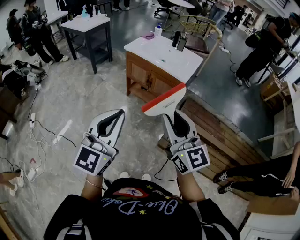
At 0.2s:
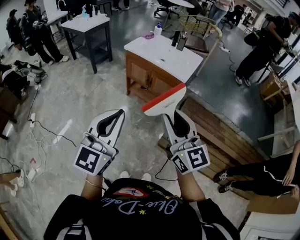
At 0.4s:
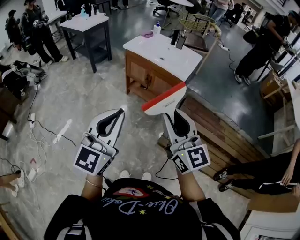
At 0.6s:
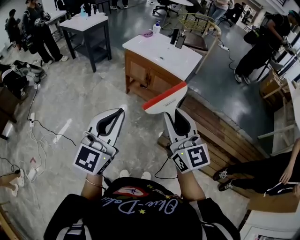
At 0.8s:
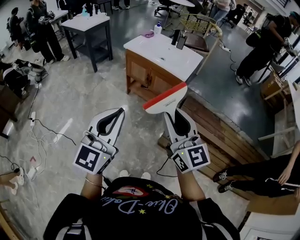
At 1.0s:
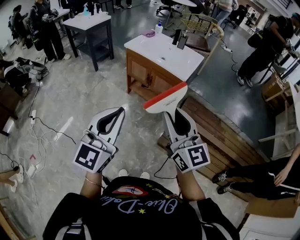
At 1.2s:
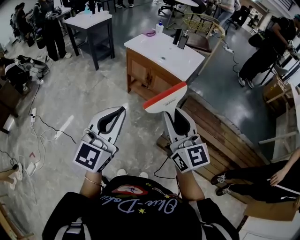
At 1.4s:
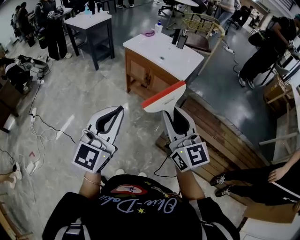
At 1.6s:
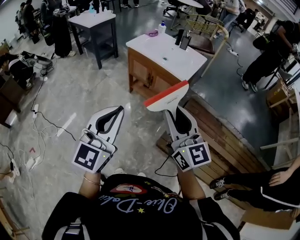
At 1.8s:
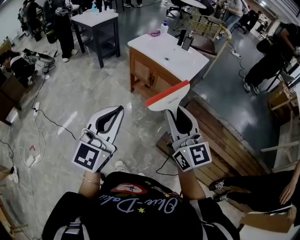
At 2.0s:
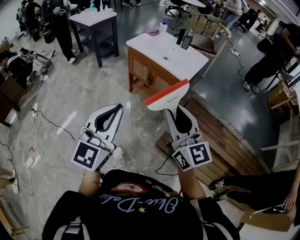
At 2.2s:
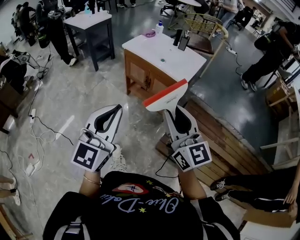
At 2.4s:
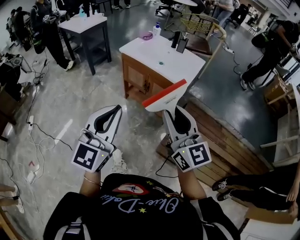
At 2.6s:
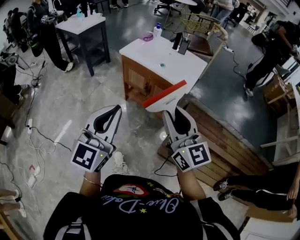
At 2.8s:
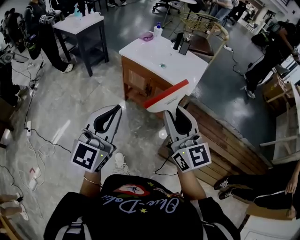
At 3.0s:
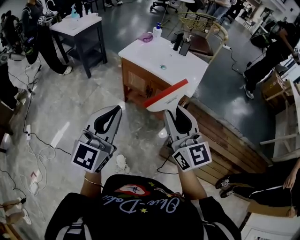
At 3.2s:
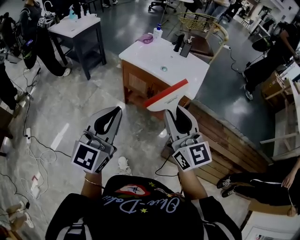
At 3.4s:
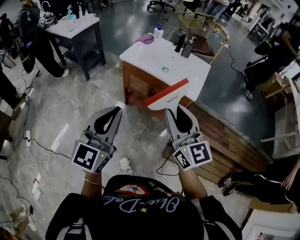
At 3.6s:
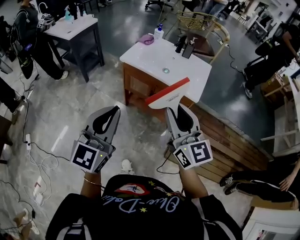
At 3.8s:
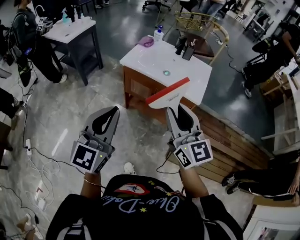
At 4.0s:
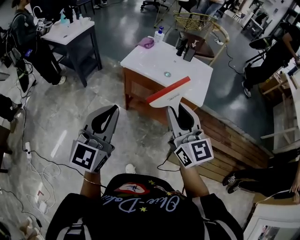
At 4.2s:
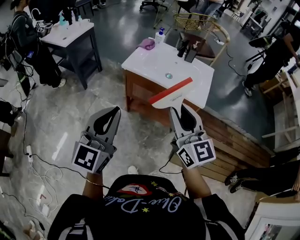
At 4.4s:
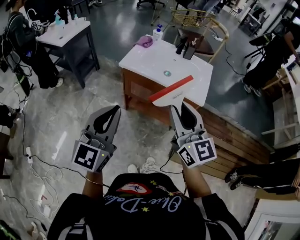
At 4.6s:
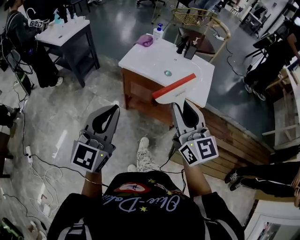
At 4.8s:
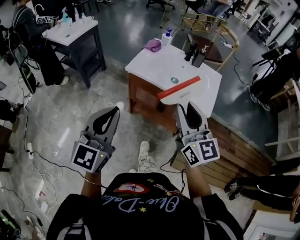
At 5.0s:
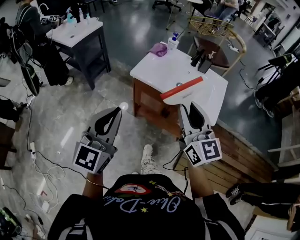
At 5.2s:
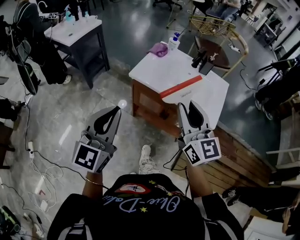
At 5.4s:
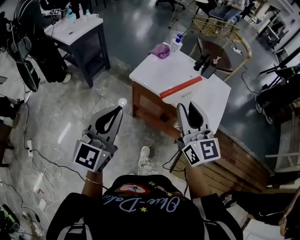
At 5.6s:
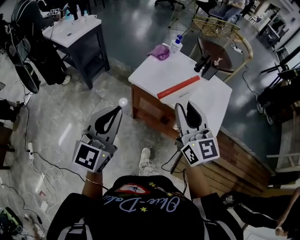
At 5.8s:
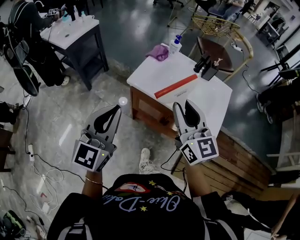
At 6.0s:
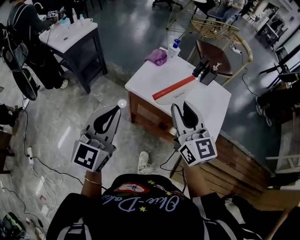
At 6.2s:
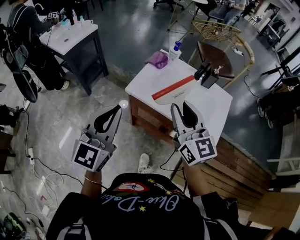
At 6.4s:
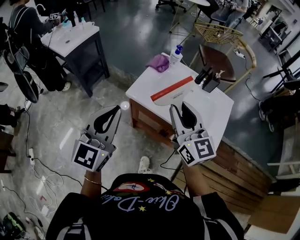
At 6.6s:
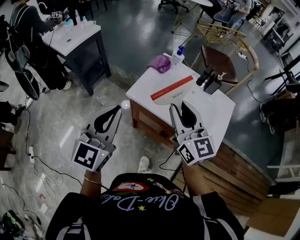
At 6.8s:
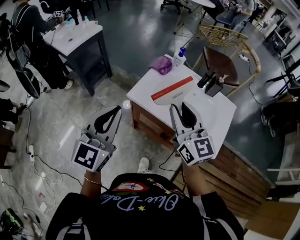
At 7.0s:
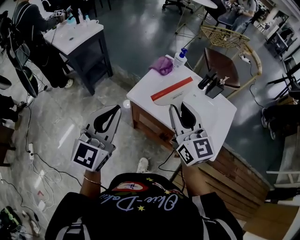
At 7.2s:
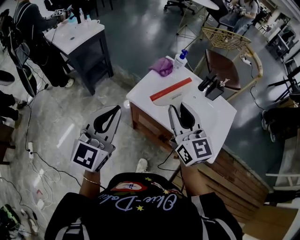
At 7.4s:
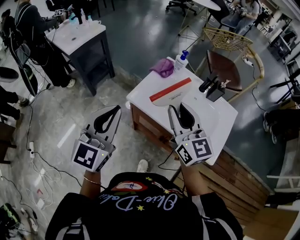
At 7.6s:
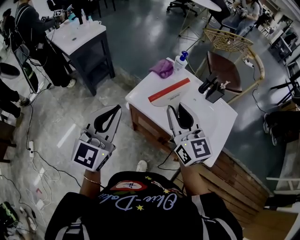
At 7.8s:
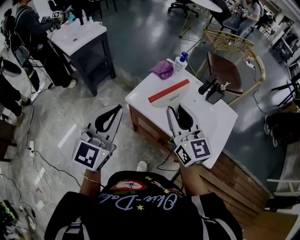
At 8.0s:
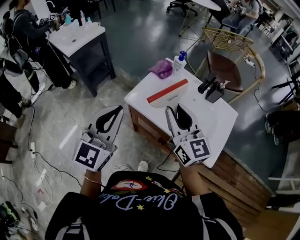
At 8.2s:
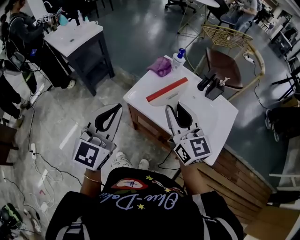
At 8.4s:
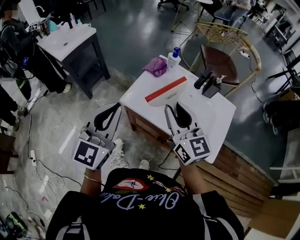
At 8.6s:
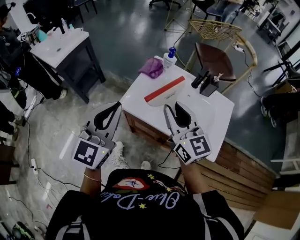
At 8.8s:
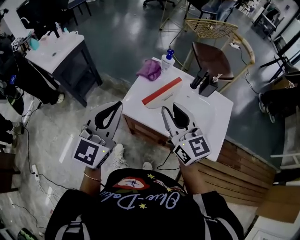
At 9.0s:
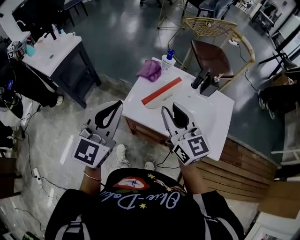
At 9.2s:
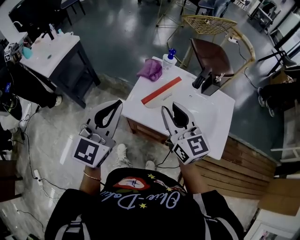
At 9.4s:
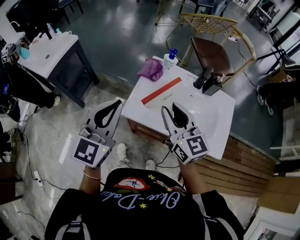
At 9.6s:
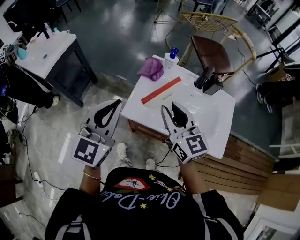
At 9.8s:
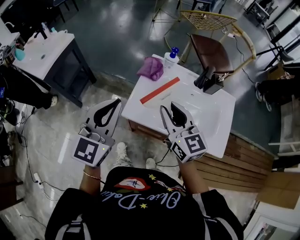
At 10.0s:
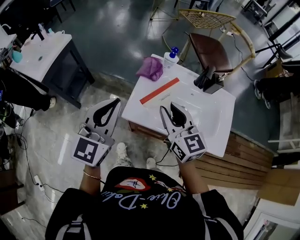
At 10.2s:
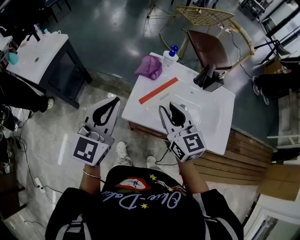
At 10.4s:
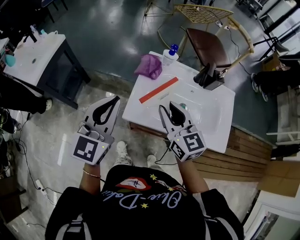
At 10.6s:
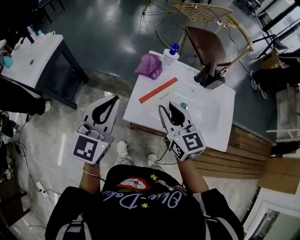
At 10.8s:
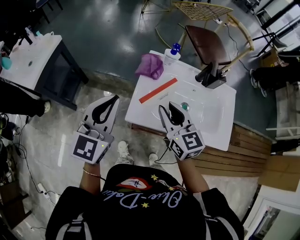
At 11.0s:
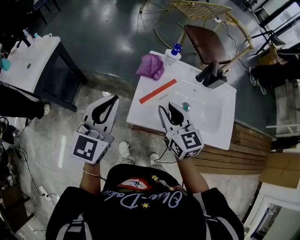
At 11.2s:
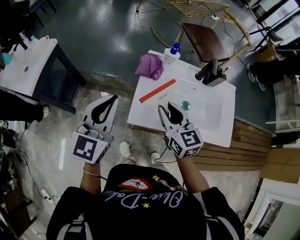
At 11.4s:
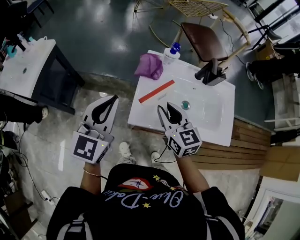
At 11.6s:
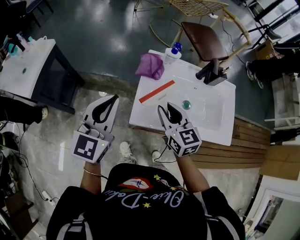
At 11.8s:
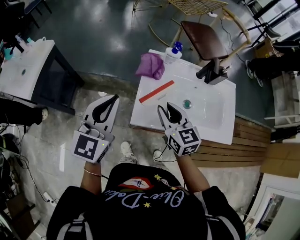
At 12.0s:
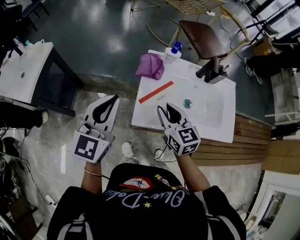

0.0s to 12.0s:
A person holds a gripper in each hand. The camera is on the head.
0.0s to 1.6s: The right gripper heads to the right, covering some 5 cm.
1.6s to 3.0s: The grippers both shift forward and to the left by some 15 cm.
3.0s to 4.4s: The grippers both shift forward and to the left by roughly 15 cm.
4.4s to 6.0s: Both grippers travel together forward, about 20 cm.
6.0s to 7.6s: The two grippers go about 10 cm forward.
7.6s to 9.0s: The left gripper is displaced forward by about 10 cm.
9.0s to 10.4s: The right gripper heads downward, covering some 5 cm; the left gripper shifts some 10 cm forward and to the left.
10.4s to 12.0s: The left gripper moves about 5 cm. The right gripper heads downward, covering some 5 cm.

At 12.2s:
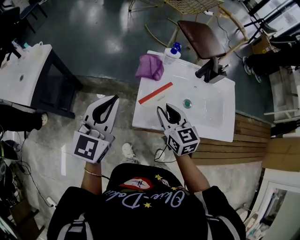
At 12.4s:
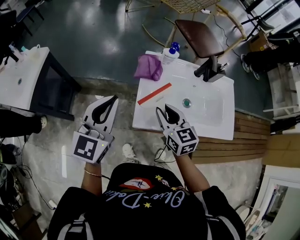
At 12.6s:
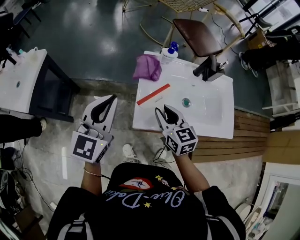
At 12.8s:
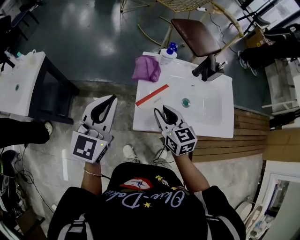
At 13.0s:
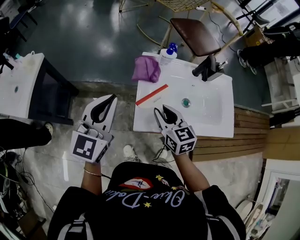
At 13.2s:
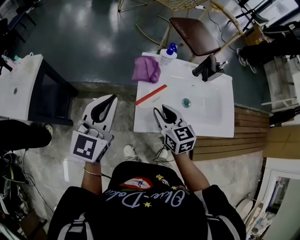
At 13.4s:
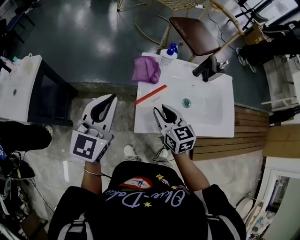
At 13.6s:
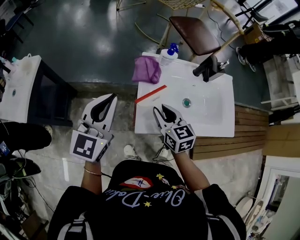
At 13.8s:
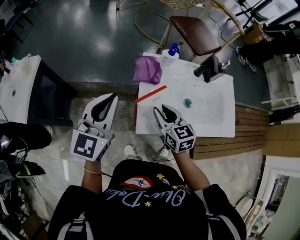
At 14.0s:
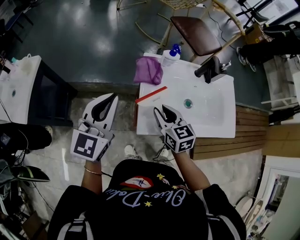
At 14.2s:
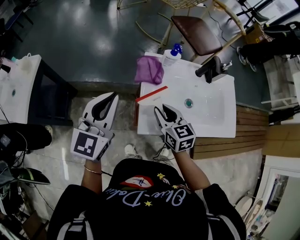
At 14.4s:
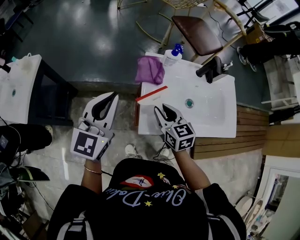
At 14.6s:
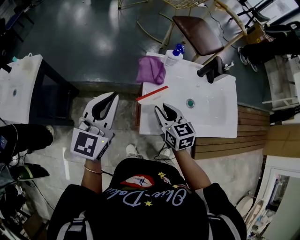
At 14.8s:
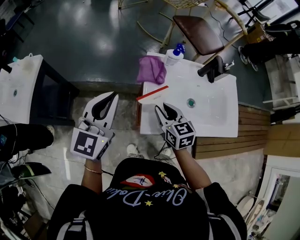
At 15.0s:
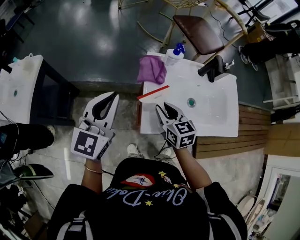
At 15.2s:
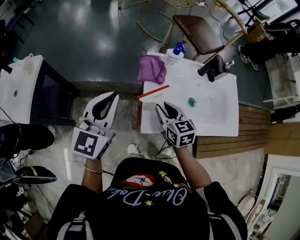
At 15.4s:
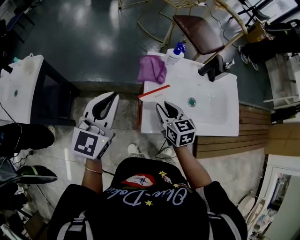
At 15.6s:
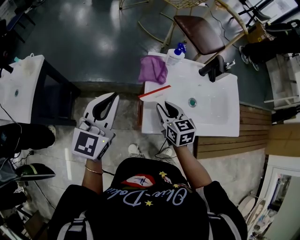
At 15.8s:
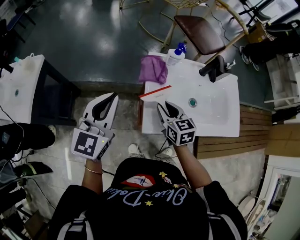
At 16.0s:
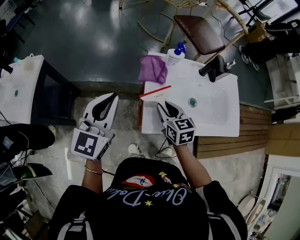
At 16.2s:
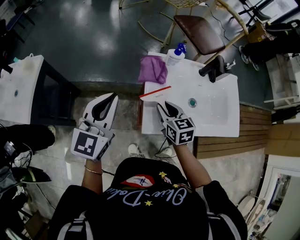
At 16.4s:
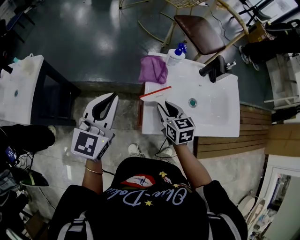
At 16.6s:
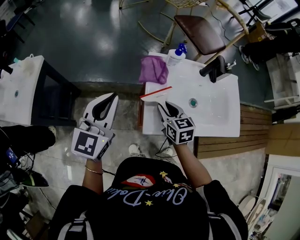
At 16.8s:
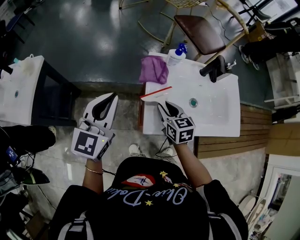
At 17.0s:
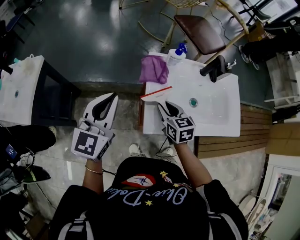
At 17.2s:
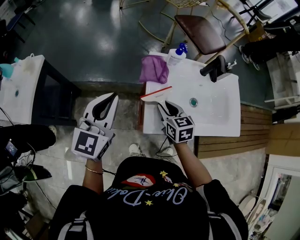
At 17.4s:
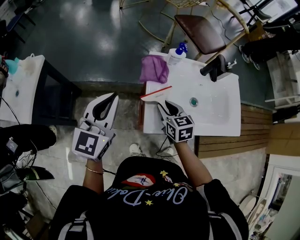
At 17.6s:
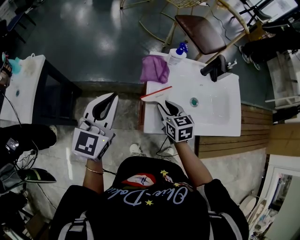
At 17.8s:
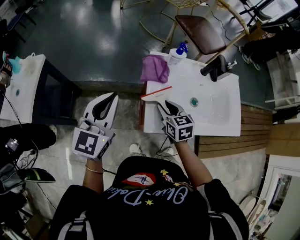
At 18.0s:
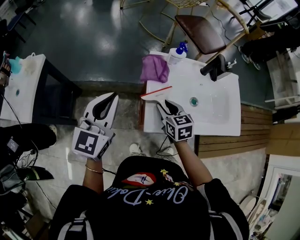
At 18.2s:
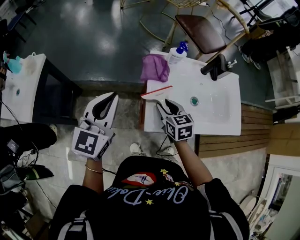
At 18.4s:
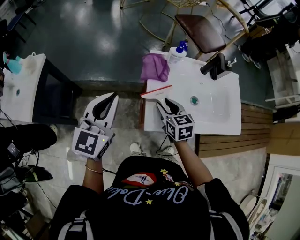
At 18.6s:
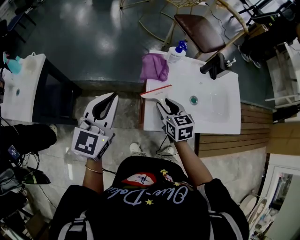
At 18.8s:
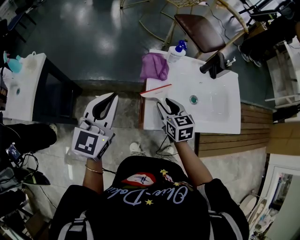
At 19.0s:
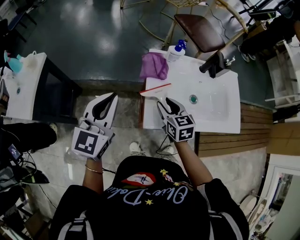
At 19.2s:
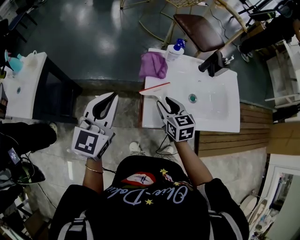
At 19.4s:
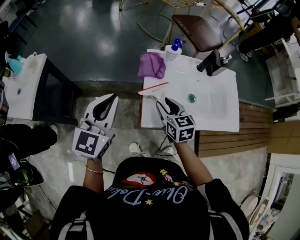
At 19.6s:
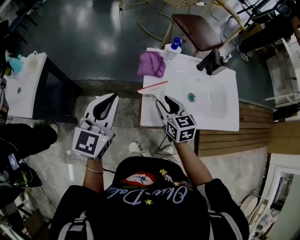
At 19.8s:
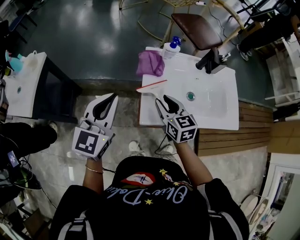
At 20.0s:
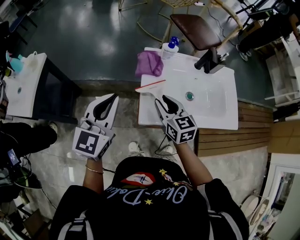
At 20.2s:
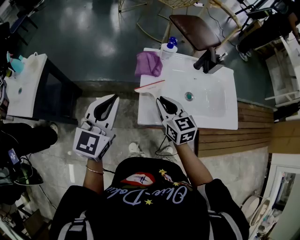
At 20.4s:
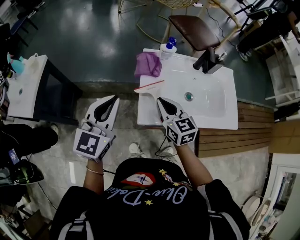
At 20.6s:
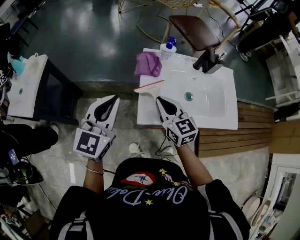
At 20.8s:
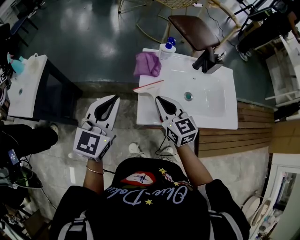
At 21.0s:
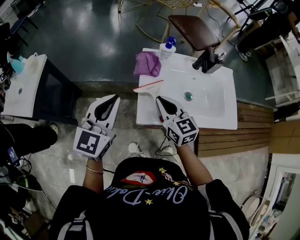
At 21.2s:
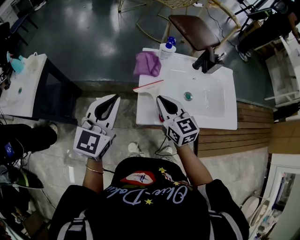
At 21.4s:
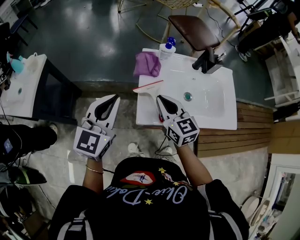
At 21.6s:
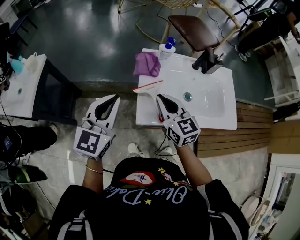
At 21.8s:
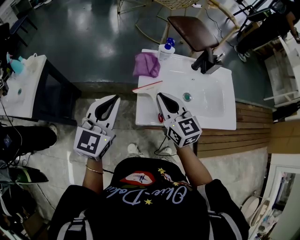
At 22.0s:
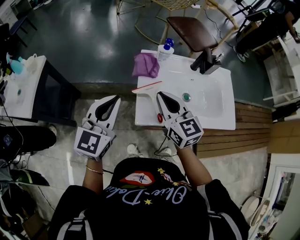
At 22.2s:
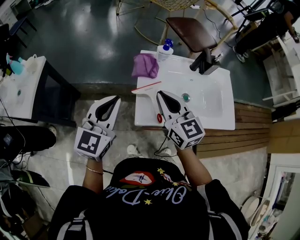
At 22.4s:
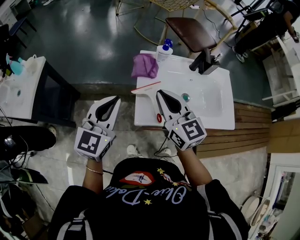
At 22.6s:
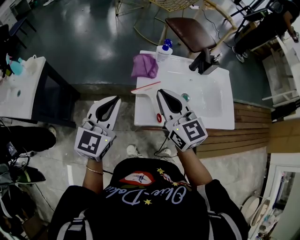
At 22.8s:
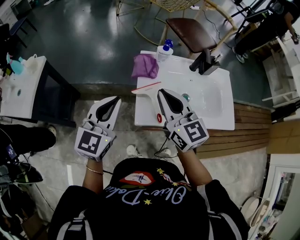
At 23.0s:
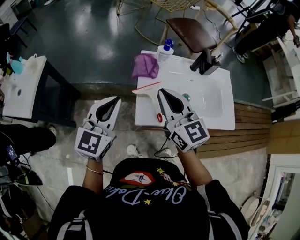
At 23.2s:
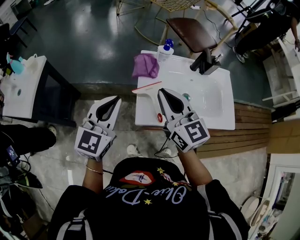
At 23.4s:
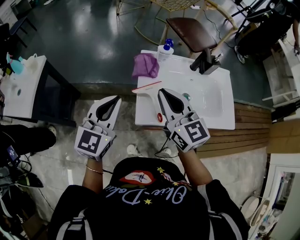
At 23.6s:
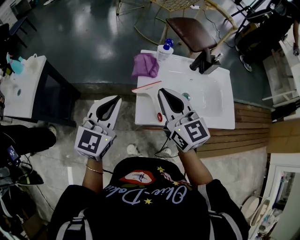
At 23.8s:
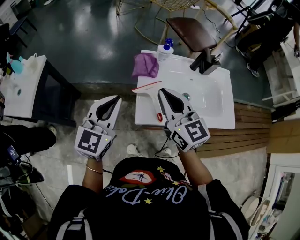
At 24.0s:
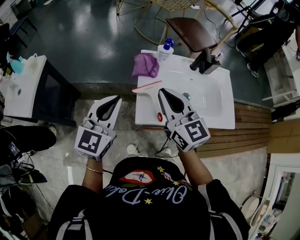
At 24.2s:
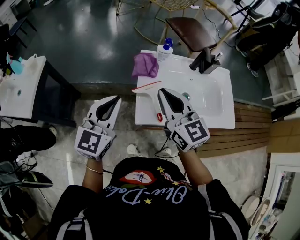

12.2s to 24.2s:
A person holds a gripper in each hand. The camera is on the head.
12.2s to 13.8s: The grippers move only a little.
13.8s to 16.6s: The grippers make only small movements.
16.6s to 18.2s: Both grippers stay about where they are.
18.2s to 19.8s: The right gripper goes some 5 cm upward.
19.8s to 21.2s: The right gripper closes its fingers.
21.2s to 22.6s: The right gripper shifts about 10 cm upward.
22.6s to 24.2s: Both grippers stay about where they are.
